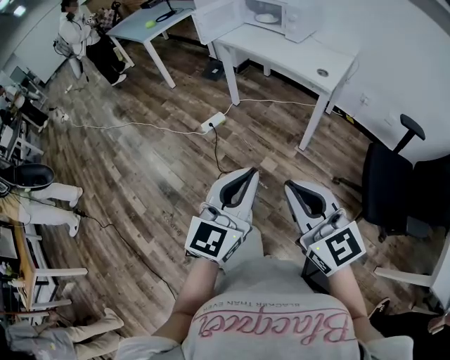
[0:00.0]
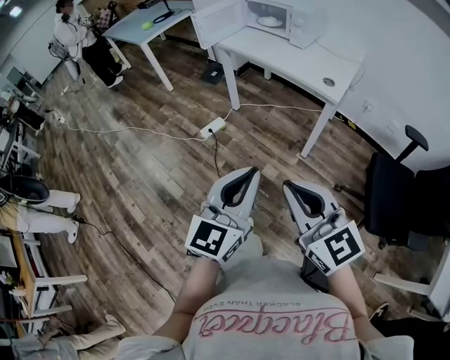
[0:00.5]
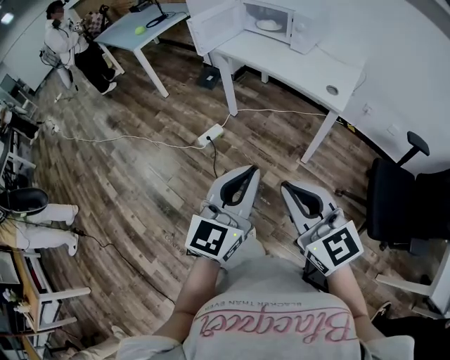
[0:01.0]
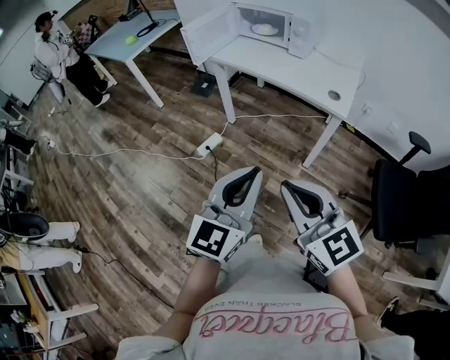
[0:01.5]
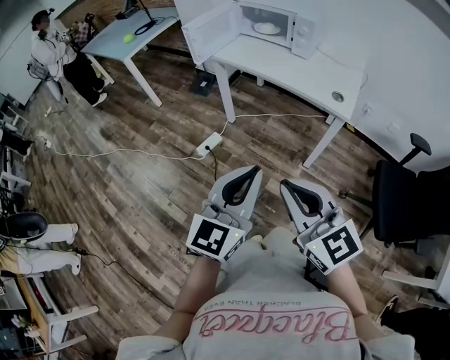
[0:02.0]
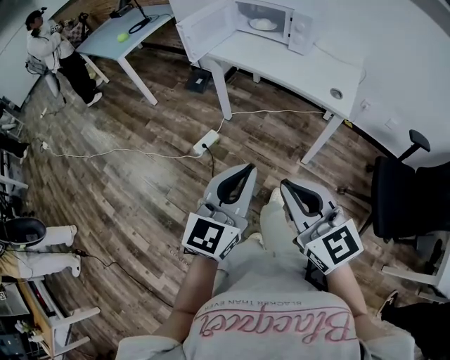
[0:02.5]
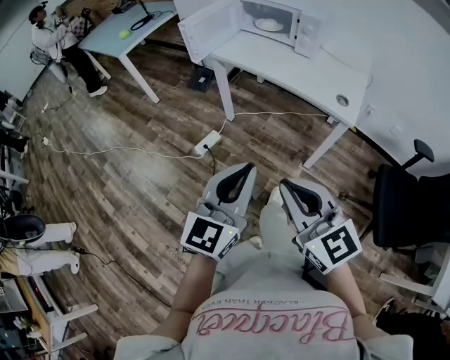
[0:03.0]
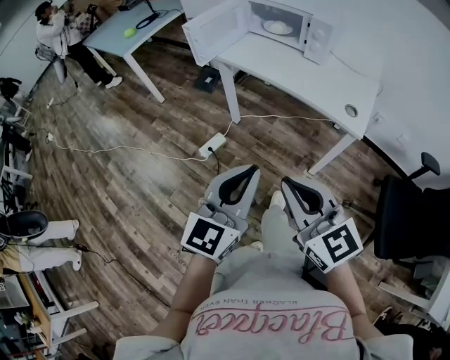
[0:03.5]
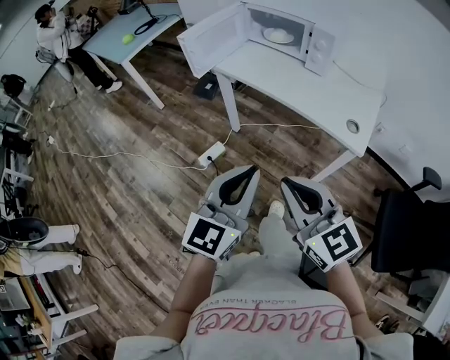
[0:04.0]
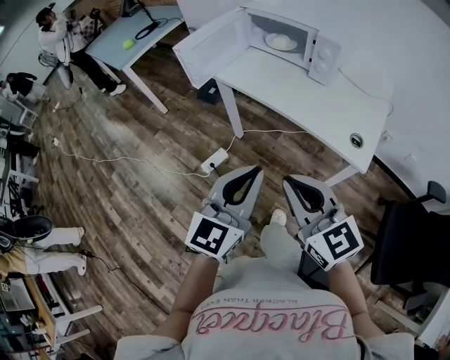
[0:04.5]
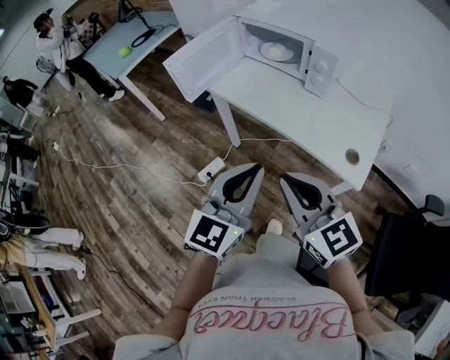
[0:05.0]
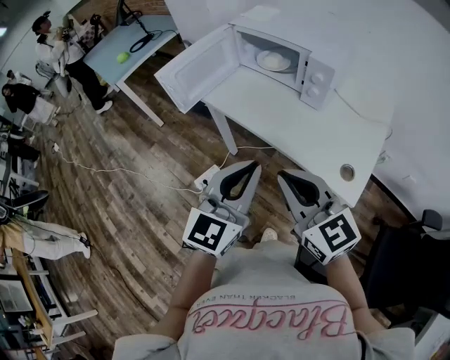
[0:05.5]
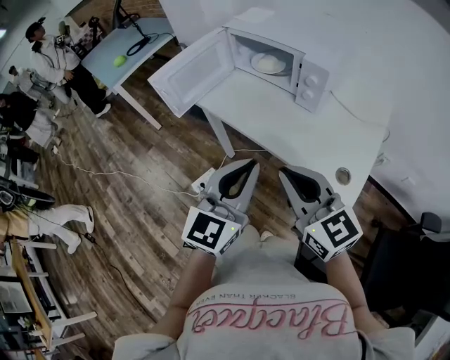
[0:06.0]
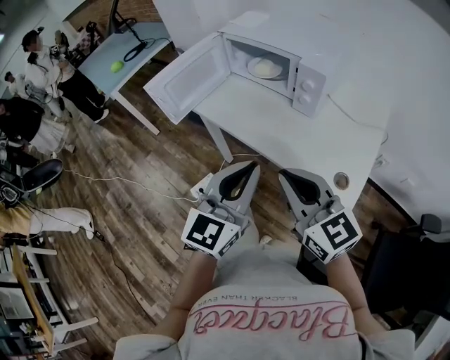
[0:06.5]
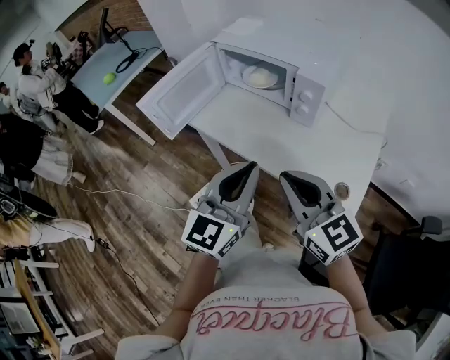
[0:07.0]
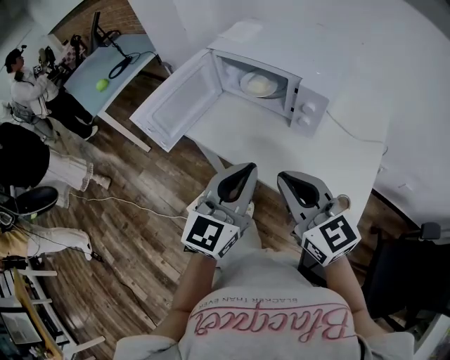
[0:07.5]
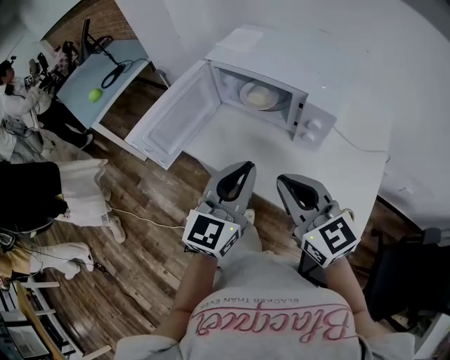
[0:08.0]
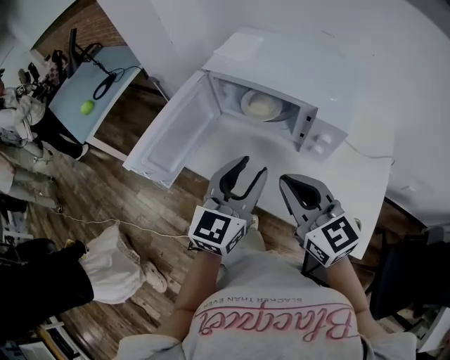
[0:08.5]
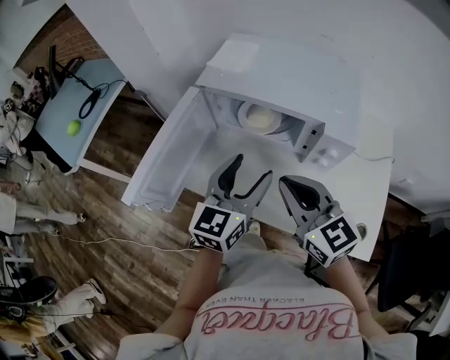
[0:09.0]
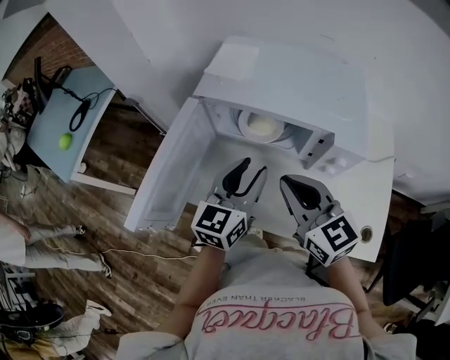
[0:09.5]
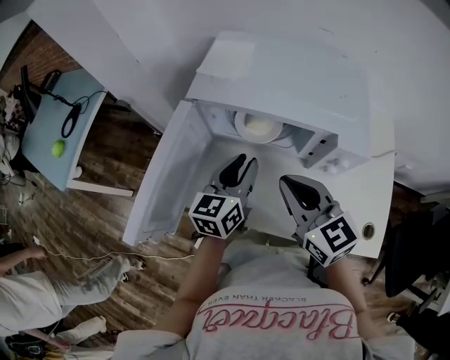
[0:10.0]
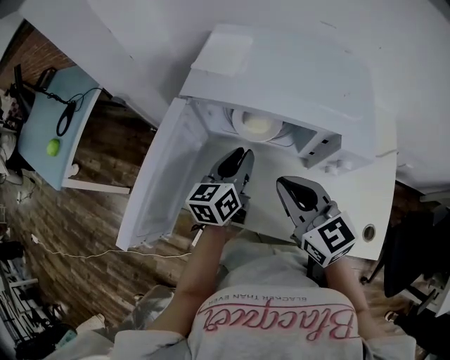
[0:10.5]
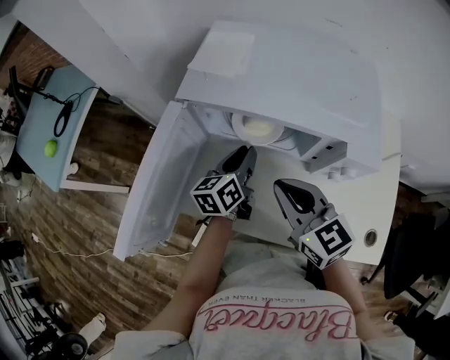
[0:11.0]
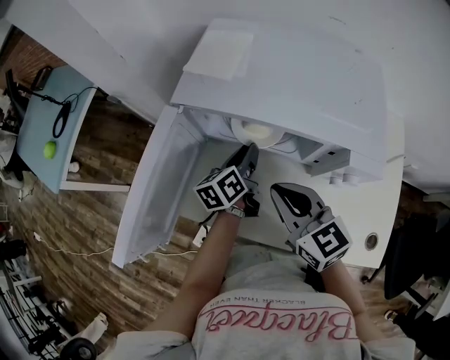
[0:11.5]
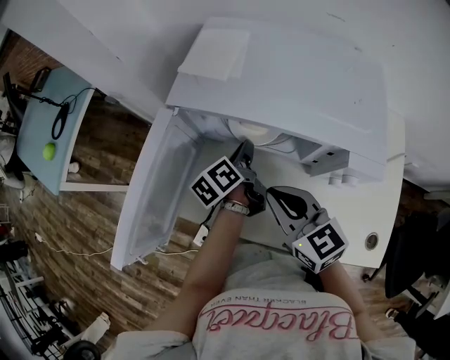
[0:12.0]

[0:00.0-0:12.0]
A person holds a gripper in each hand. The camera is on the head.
0:00.0 to 0:02.0: The right gripper is displaced forward and to the left by about 25 cm; the left gripper goes about 20 cm forward.
0:02.0 to 0:04.0: Both grippers travel together forward, approximately 15 cm.
0:04.0 to 0:06.0: The two grippers go some 25 cm forward and to the right.
0:06.0 to 0:08.0: Both grippers travel together forward, about 20 cm.
0:08.0 to 0:10.0: The right gripper goes approximately 20 cm forward; the left gripper shifts roughly 25 cm forward and downward, swivels some 30 degrees, and opens, then closes again.
0:10.0 to 0:12.0: The left gripper is displaced downward and forward by about 15 cm, and twists some 50 degrees counterclockwise, seen from behind, while the right gripper shifts approximately 5 cm downward.

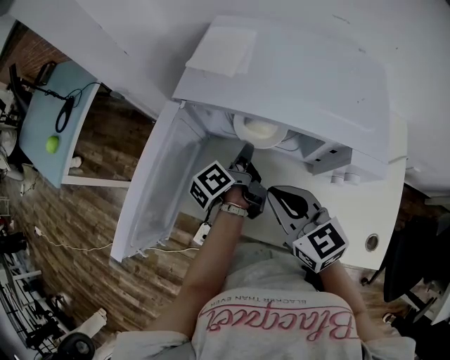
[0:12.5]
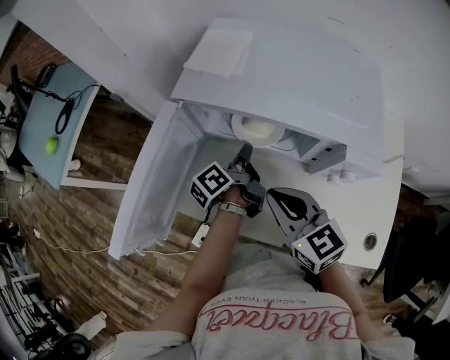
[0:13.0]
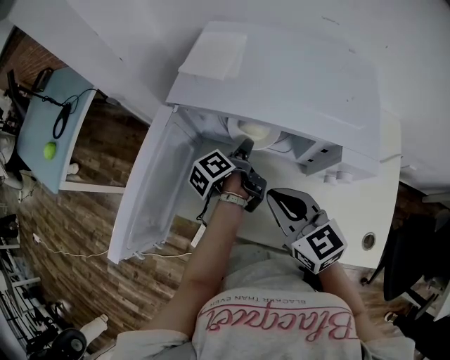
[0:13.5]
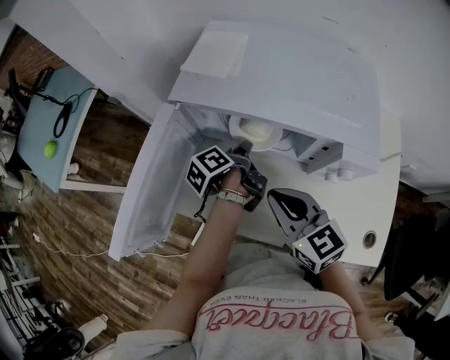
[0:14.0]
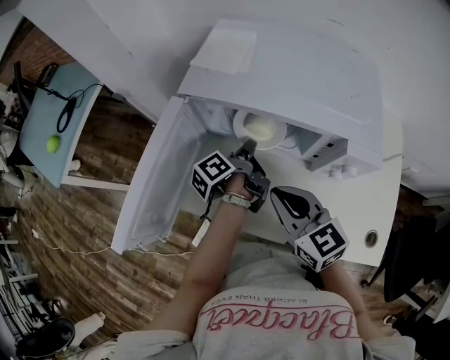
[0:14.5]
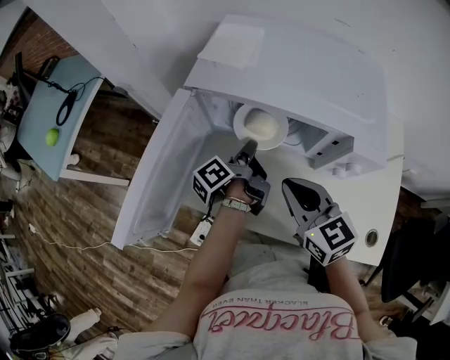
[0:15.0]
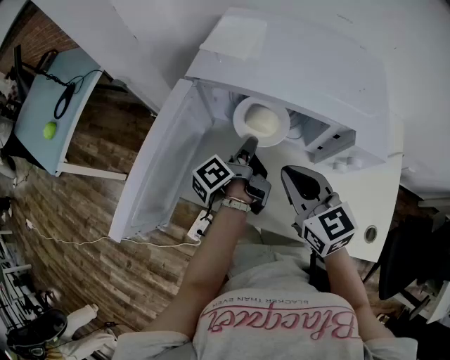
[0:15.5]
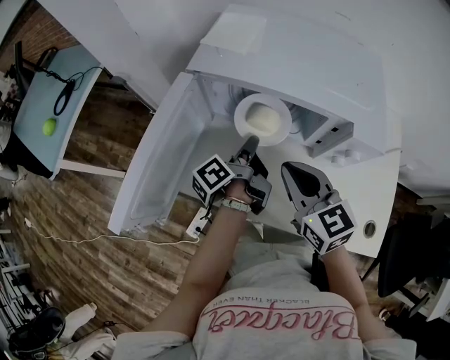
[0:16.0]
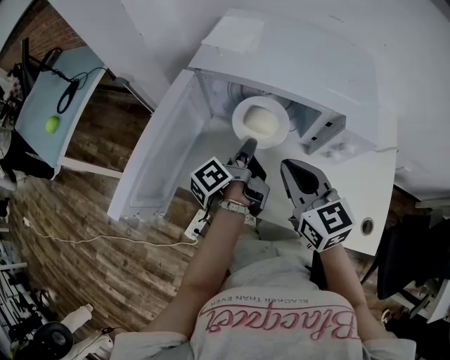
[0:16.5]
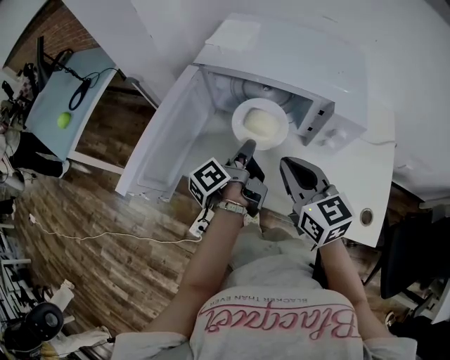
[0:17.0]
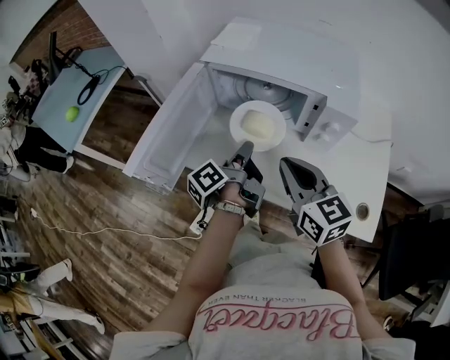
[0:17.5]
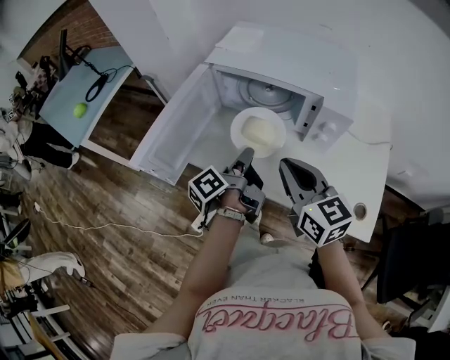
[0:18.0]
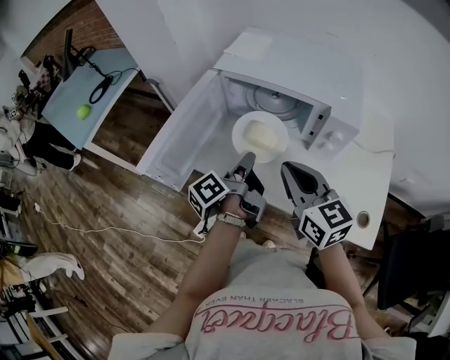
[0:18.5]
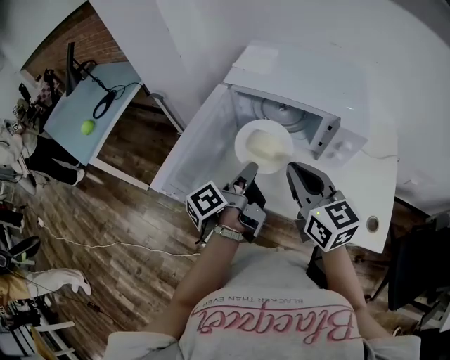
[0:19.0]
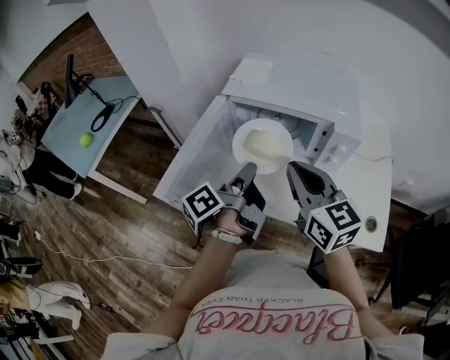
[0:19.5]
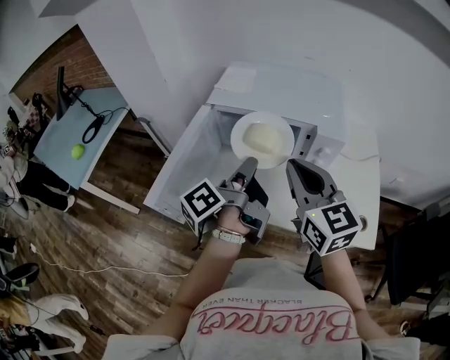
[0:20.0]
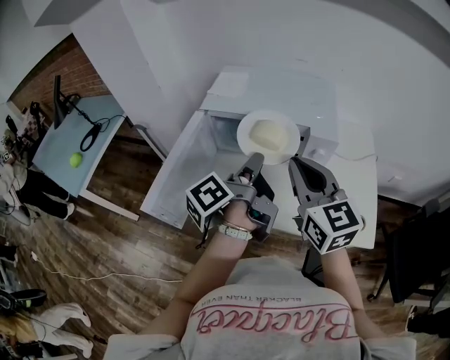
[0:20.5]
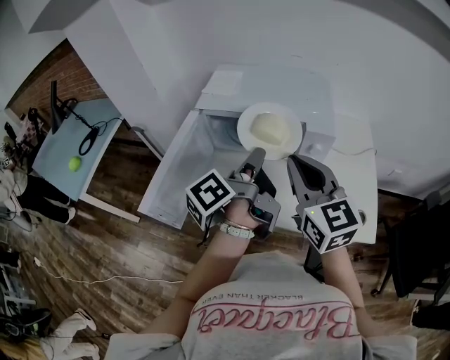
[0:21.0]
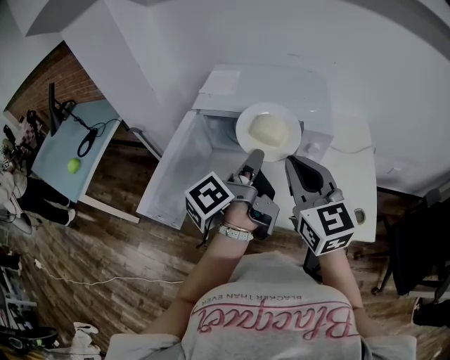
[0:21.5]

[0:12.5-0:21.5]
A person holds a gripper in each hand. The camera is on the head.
0:12.5 to 0:14.5: The left gripper opens, then closes once more.
0:14.5 to 0:17.0: The left gripper shifts about 10 cm backward and upward. Meanwhile the right gripper shifts by some 5 cm.
0:17.0 to 0:19.5: The right gripper moves upward, some 10 cm. The left gripper goes about 15 cm upward, backward and to the left.
0:19.5 to 0:21.5: The right gripper moves to the right, roughly 5 cm, while the left gripper is displaced to the right and upward by about 10 cm.

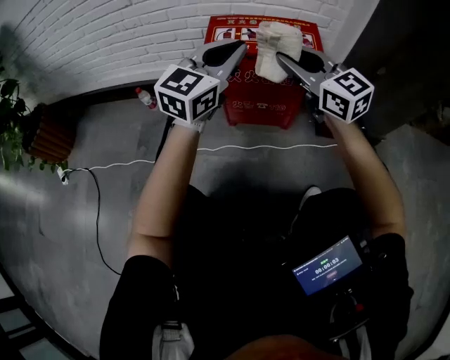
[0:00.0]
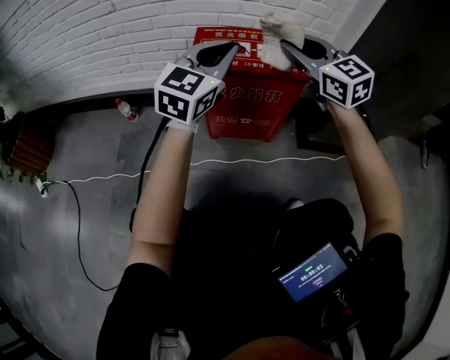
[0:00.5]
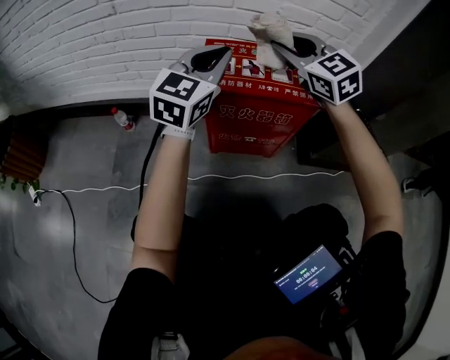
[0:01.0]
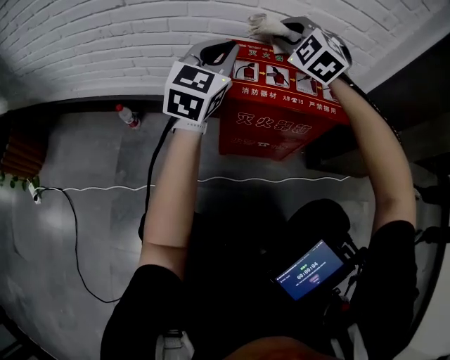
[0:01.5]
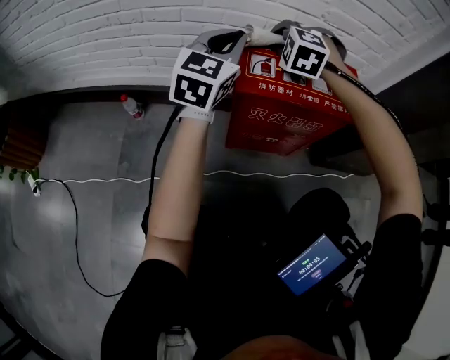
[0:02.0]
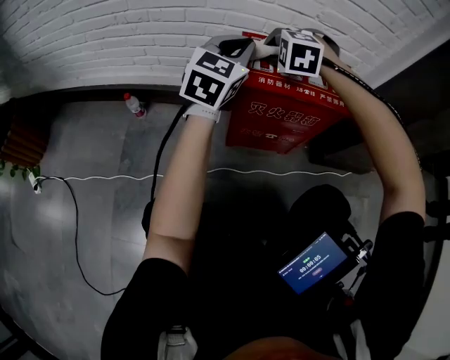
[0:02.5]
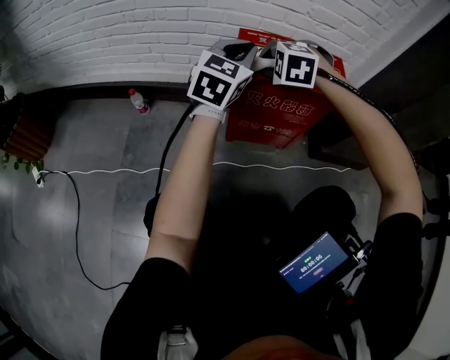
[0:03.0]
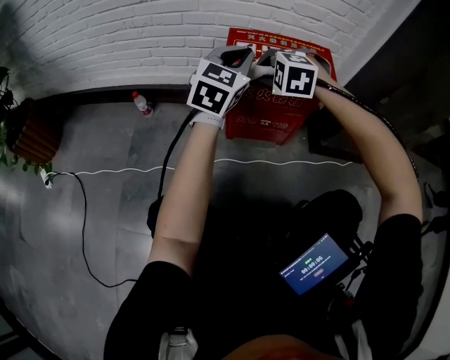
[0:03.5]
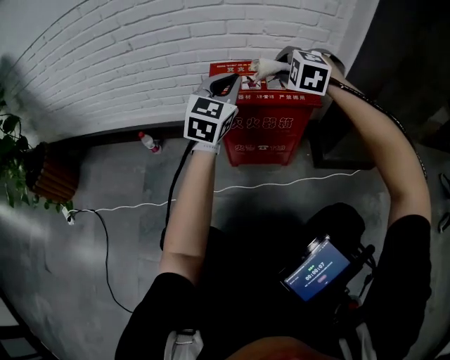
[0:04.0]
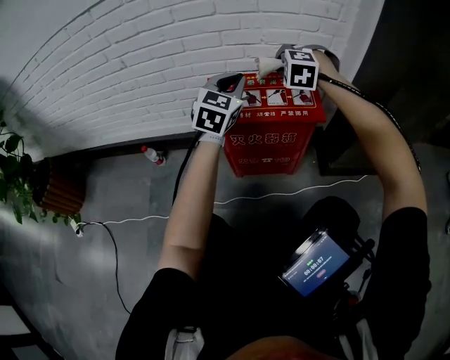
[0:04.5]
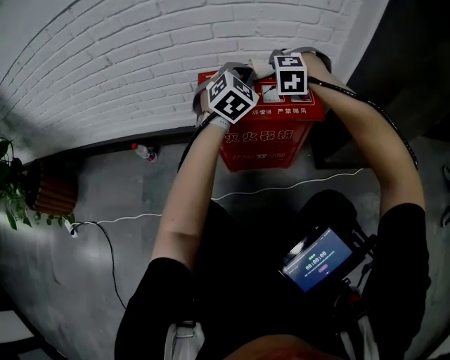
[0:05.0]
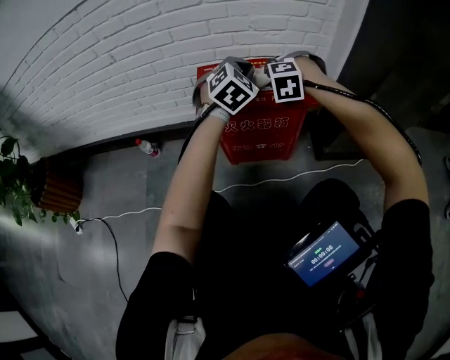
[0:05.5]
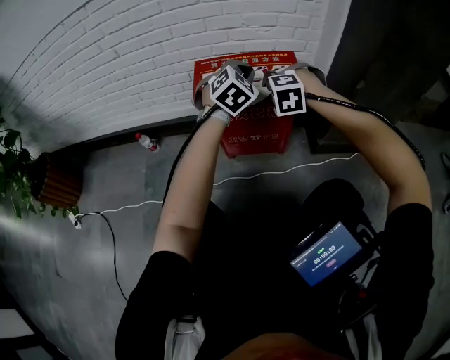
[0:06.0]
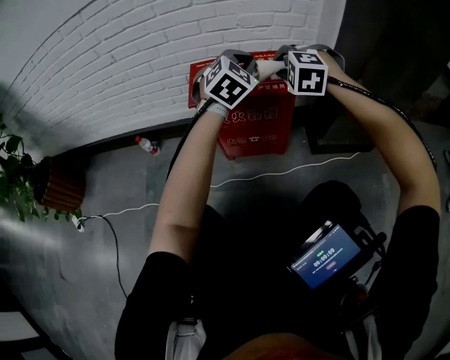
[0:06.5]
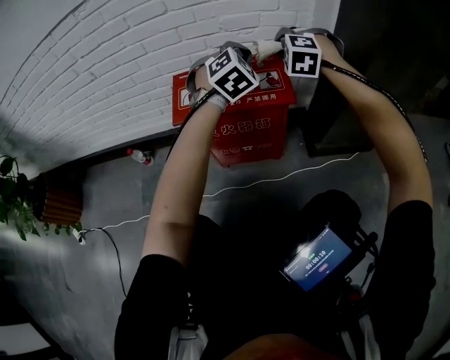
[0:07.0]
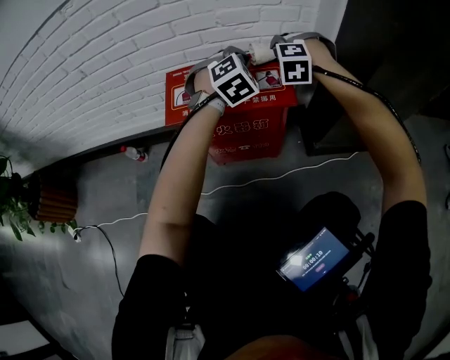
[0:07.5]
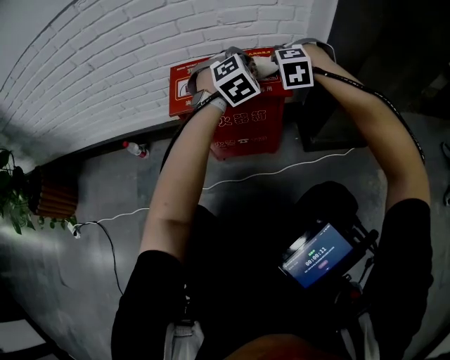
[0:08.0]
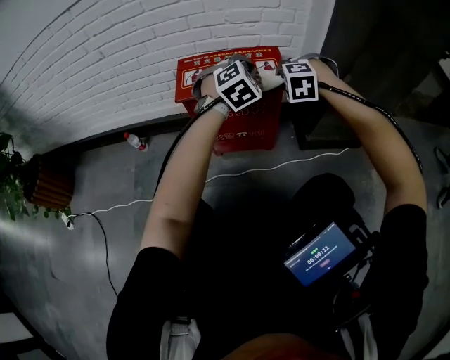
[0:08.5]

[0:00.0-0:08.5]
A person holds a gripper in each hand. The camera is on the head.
0:00.0 to 0:02.0: The right gripper shifts approximately 30 cm forward, to the left and downward, and tilts its fingers some 50 degrees downward; the left gripper travels forward and to the left by approximately 25 cm.
0:02.0 to 0:04.0: The right gripper goes some 20 cm to the right, backward and upward, while the left gripper shifts roughly 15 cm to the right and backward.
0:04.0 to 0:06.5: The left gripper moves to the right and forward, some 15 cm, and turns by about 30 degrees, while the right gripper swings forward and backward, some 15 cm each way, with 2 reversals.
0:06.5 to 0:08.5: Both grippers move downward, approximately 5 cm. The right gripper moves some 15 cm forward and comes back. The left gripper travels forward and back again, roughly 10 cm each way.
